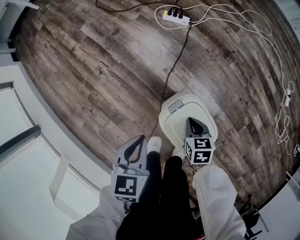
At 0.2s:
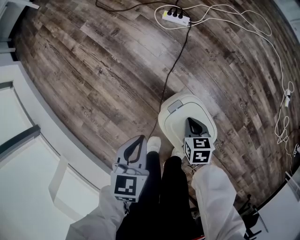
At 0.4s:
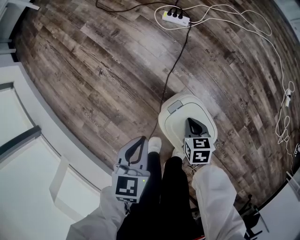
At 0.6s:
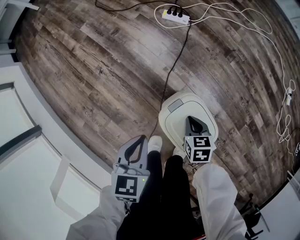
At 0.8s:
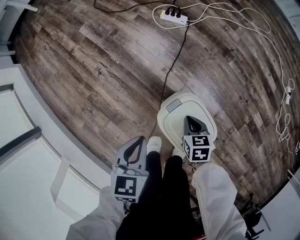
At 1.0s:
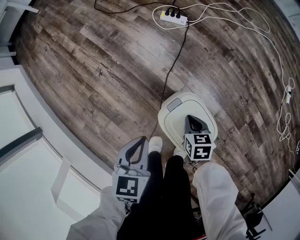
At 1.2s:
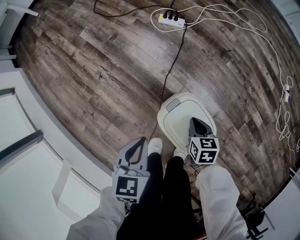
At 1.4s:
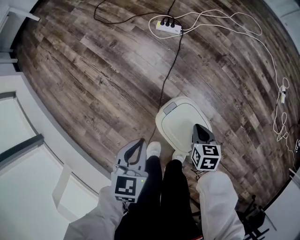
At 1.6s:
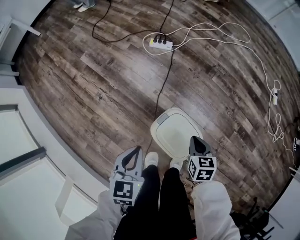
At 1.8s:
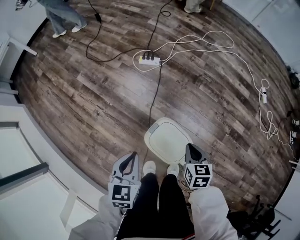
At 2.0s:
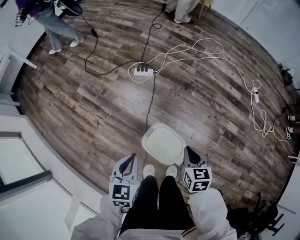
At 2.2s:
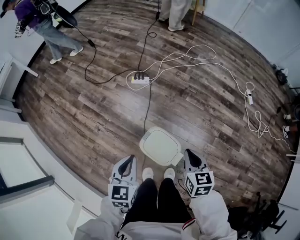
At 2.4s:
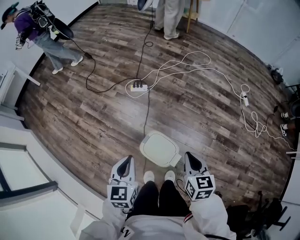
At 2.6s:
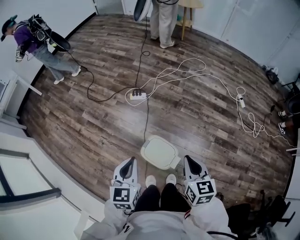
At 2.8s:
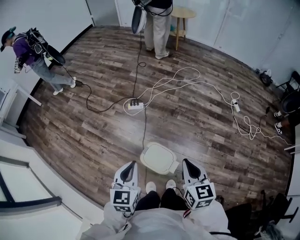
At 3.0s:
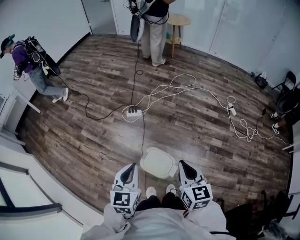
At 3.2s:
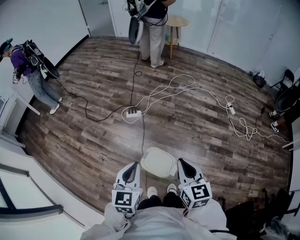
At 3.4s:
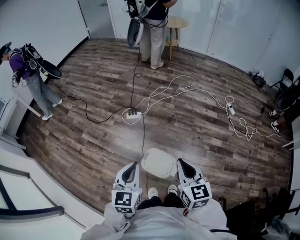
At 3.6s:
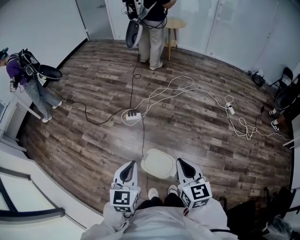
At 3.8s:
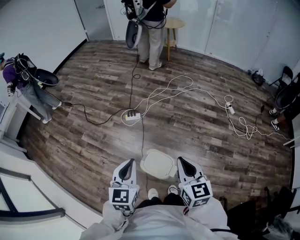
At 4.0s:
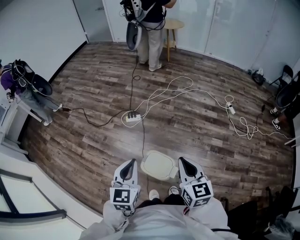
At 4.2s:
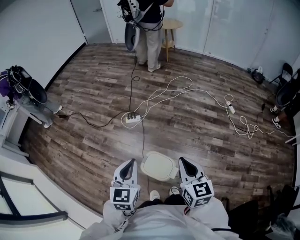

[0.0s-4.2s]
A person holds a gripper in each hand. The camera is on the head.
0.0s to 1.4s: The right gripper heads upward and to the right, covering about 5 cm.
1.4s to 2.8s: The grippers both shift upward by about 50 cm. The left gripper swivels about 20 degrees. Meanwhile the right gripper points its fingers some 30 degrees further upward.
2.8s to 4.2s: The left gripper travels upward by roughly 5 cm.

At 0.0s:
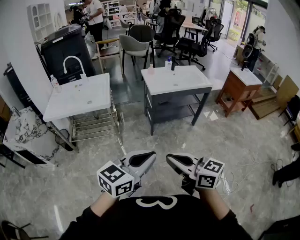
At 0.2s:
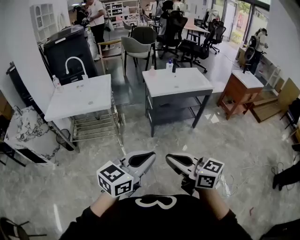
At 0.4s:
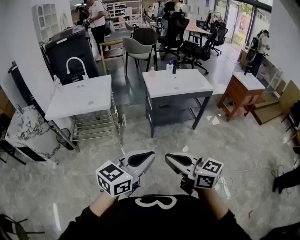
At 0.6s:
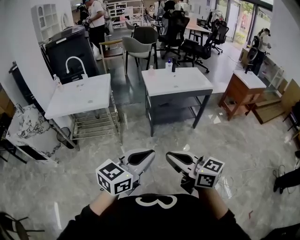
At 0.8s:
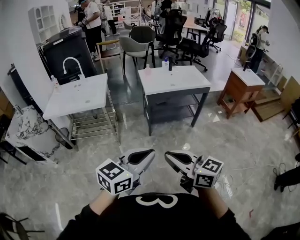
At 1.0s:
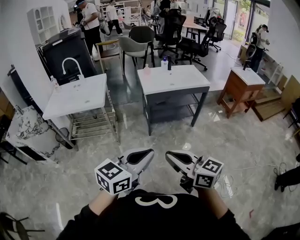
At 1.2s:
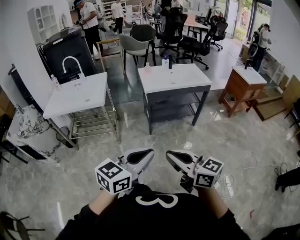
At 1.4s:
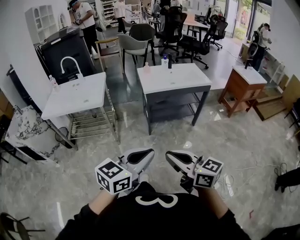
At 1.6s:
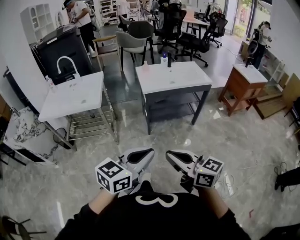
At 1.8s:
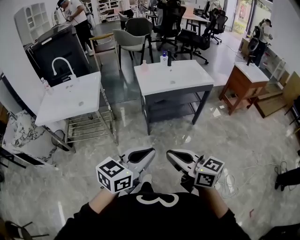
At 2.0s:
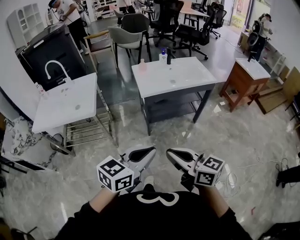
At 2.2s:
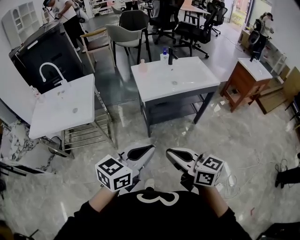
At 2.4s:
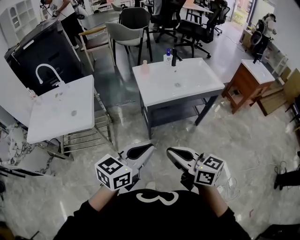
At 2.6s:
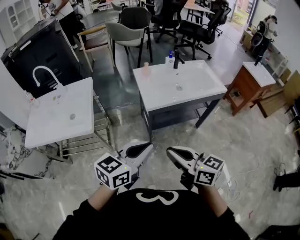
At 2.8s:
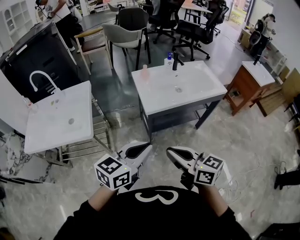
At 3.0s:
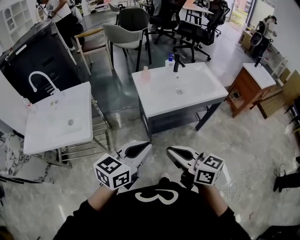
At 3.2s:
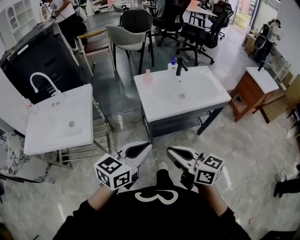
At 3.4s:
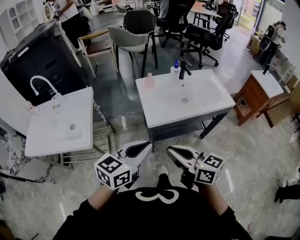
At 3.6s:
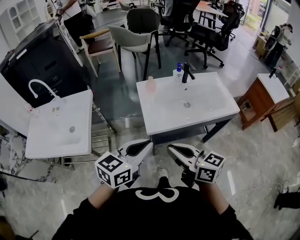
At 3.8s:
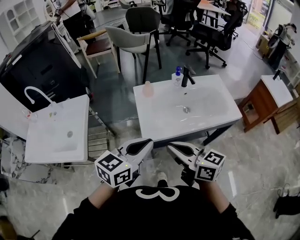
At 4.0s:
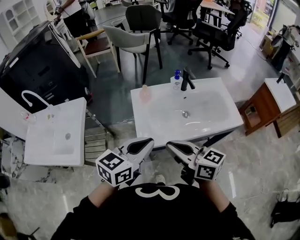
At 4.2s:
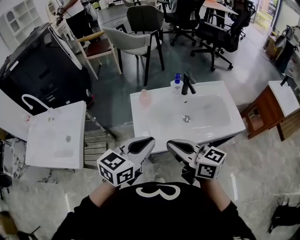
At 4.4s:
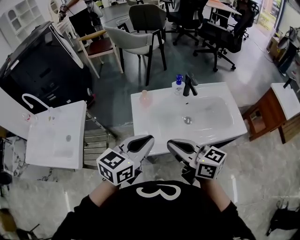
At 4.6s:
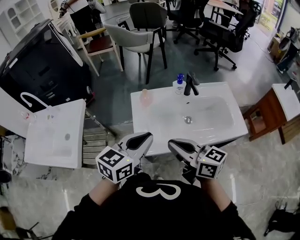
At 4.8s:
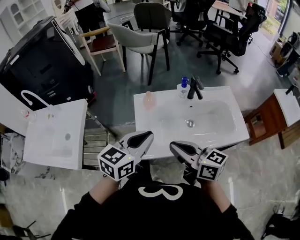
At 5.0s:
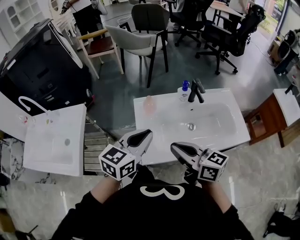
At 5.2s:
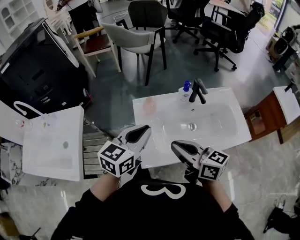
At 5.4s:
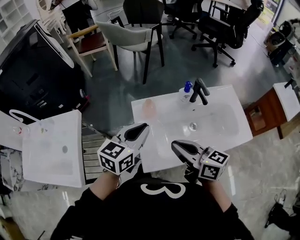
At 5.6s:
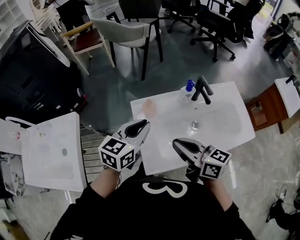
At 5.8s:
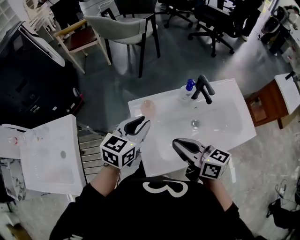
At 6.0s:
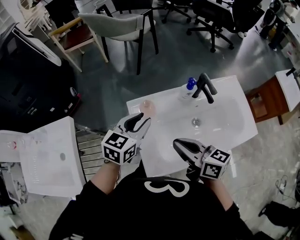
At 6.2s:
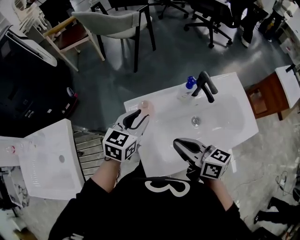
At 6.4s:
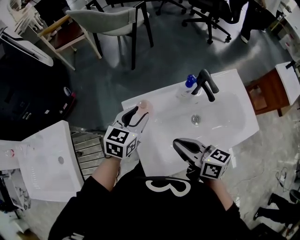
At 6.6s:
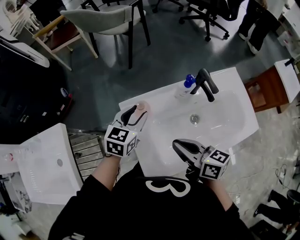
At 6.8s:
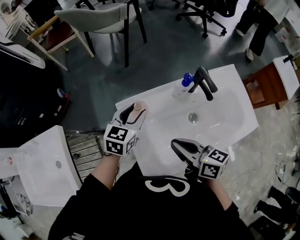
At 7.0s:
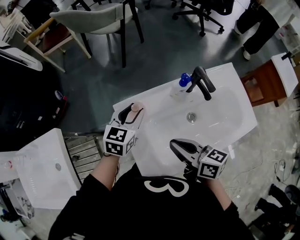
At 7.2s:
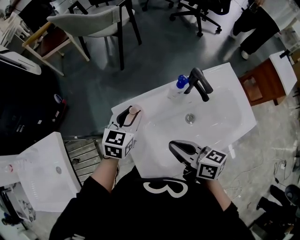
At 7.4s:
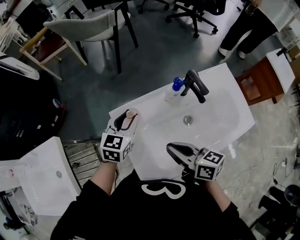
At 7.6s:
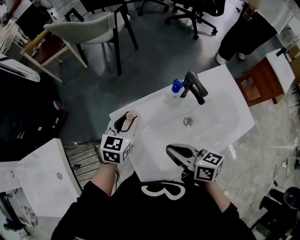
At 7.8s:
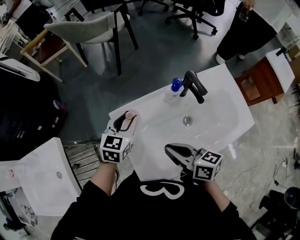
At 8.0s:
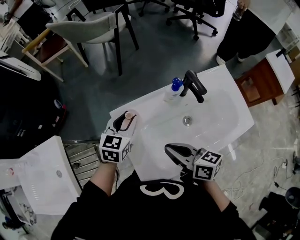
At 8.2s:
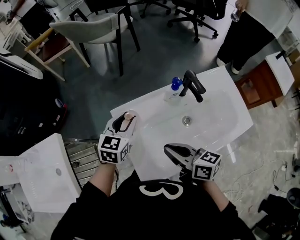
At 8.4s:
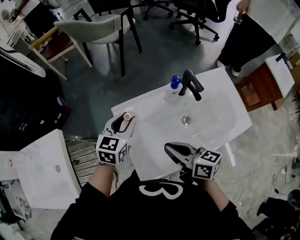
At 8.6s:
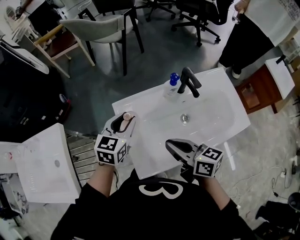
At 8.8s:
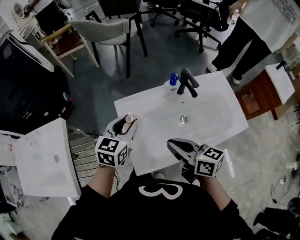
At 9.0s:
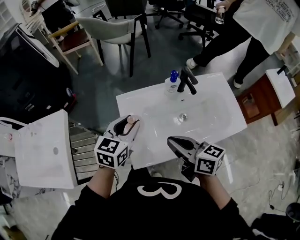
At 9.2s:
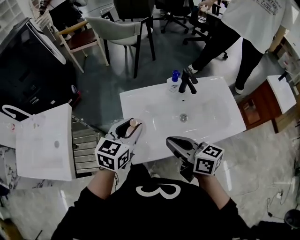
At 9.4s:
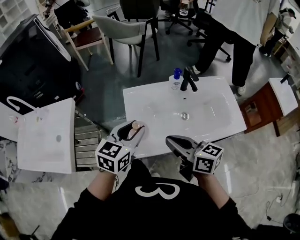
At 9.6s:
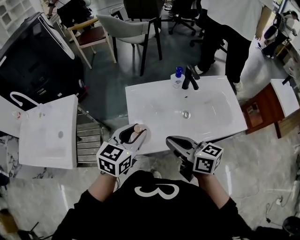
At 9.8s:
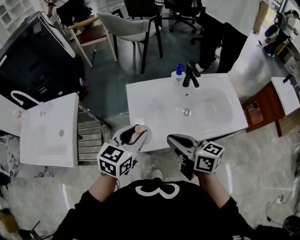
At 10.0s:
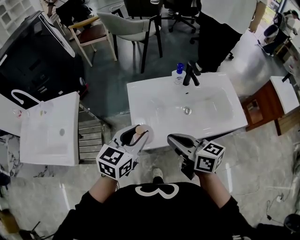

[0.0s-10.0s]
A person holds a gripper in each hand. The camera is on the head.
0.0s to 1.4s: Both grippers travel together to the right, some 10 cm.
1.4s to 2.8s: The grippers both shift forward by some 35 cm.
2.8s to 4.2s: Both grippers travel together forward, some 30 cm.
4.2s to 5.8s: Both grippers move forward, about 20 cm.
5.8s to 7.2s: The right gripper is displaced downward by roughly 5 cm. Meanwhile the left gripper travels forward and downward by about 15 cm.
7.2s to 8.6s: The right gripper ends up some 5 cm from where it was. The left gripper shifts roughly 10 cm backward and upward.
8.6s to 10.0s: The right gripper travels backward by roughly 10 cm. Meanwhile the left gripper moves backward, about 20 cm.

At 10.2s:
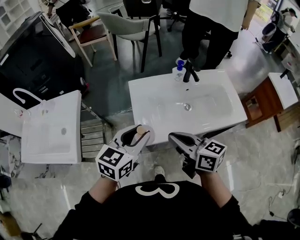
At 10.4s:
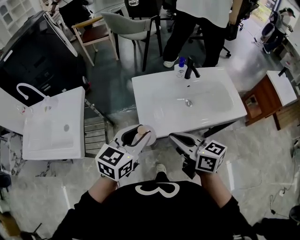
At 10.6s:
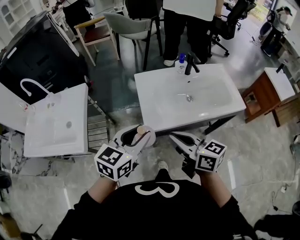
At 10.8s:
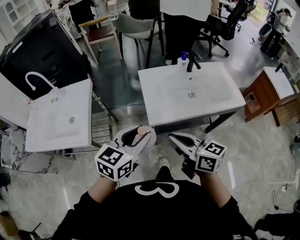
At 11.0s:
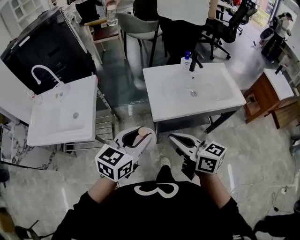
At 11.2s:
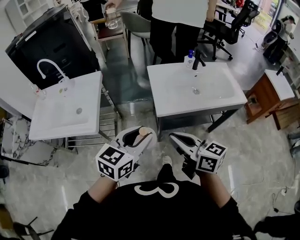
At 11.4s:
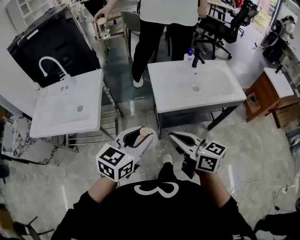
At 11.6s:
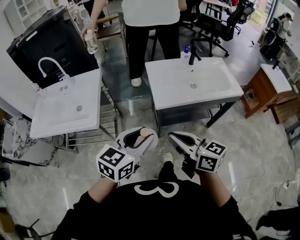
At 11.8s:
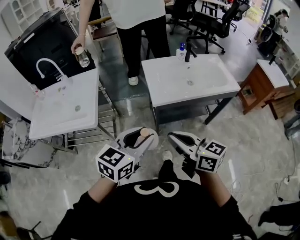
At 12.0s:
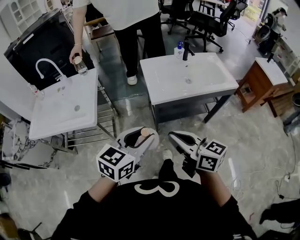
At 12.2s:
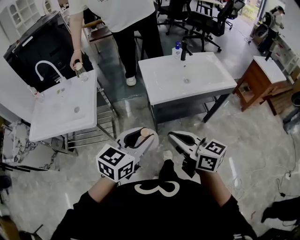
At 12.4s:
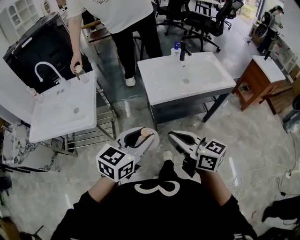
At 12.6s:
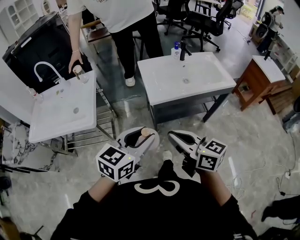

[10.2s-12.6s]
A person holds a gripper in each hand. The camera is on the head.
10.2s to 11.4s: The grippers both shift backward and to the left by roughly 25 cm.
11.4s to 12.6s: Both grippers move backward, approximately 5 cm.

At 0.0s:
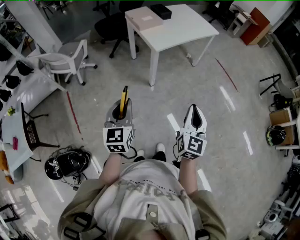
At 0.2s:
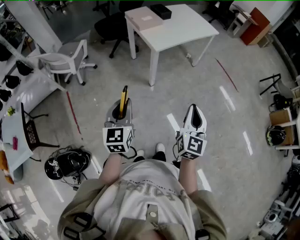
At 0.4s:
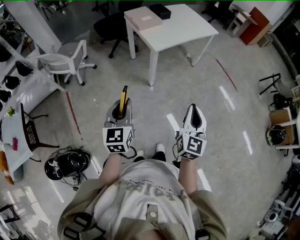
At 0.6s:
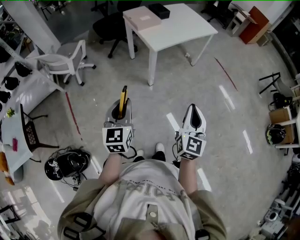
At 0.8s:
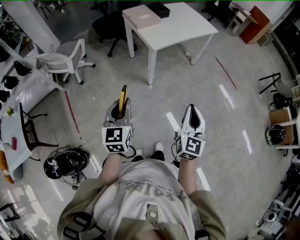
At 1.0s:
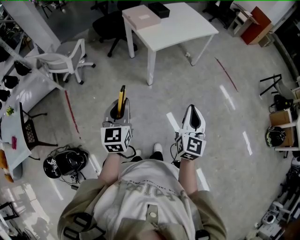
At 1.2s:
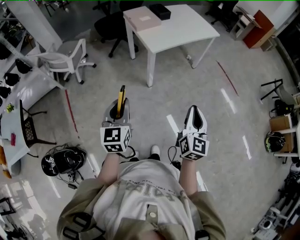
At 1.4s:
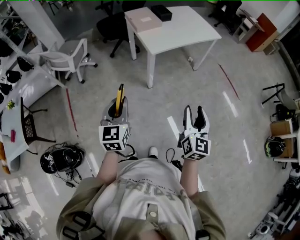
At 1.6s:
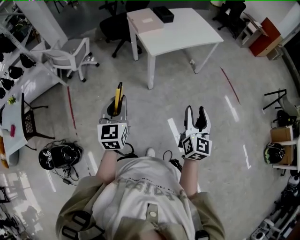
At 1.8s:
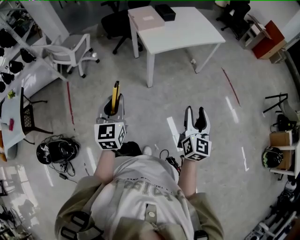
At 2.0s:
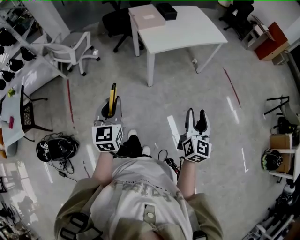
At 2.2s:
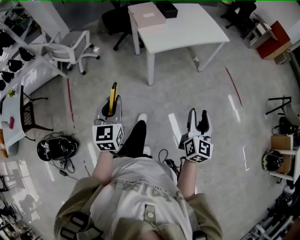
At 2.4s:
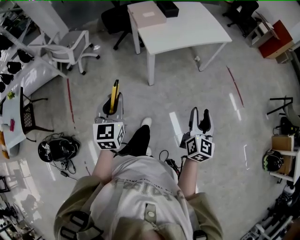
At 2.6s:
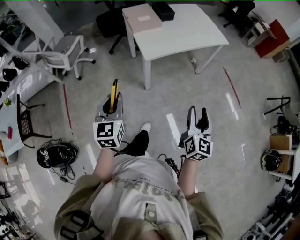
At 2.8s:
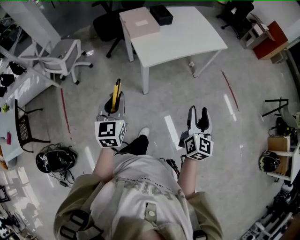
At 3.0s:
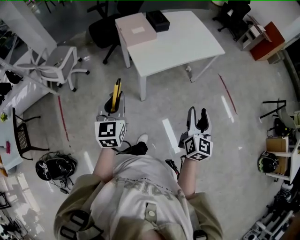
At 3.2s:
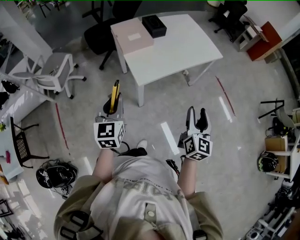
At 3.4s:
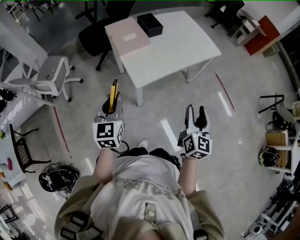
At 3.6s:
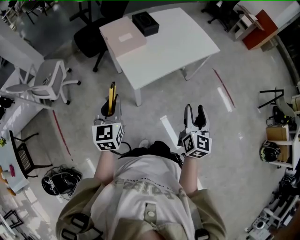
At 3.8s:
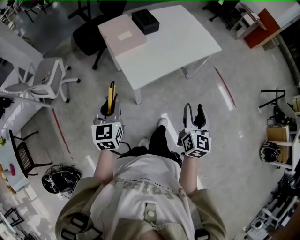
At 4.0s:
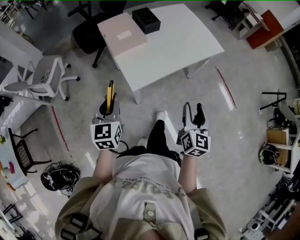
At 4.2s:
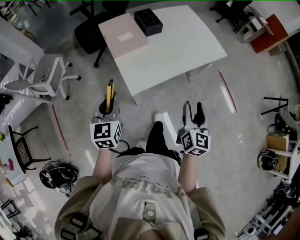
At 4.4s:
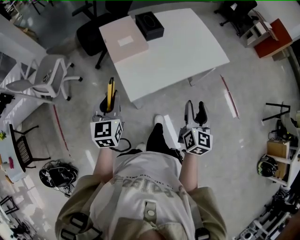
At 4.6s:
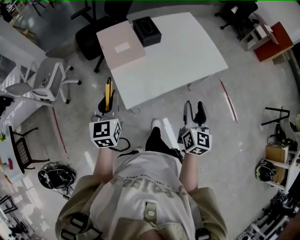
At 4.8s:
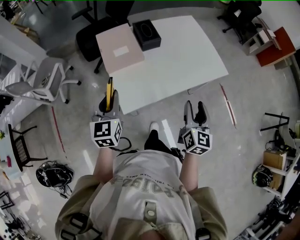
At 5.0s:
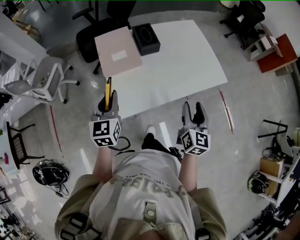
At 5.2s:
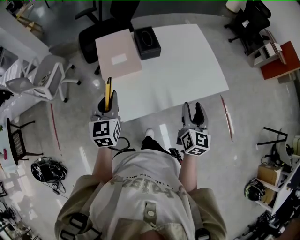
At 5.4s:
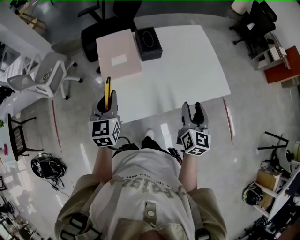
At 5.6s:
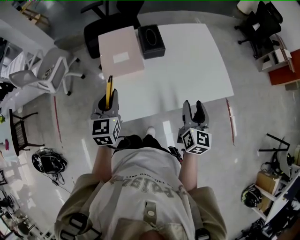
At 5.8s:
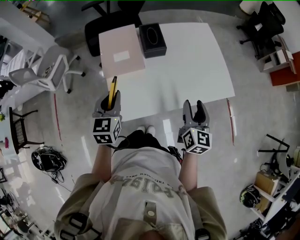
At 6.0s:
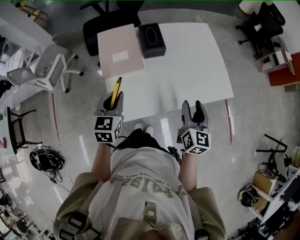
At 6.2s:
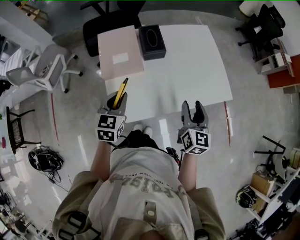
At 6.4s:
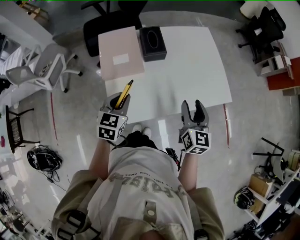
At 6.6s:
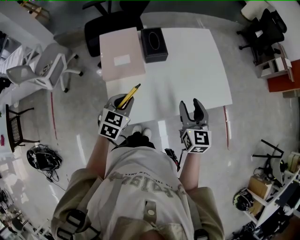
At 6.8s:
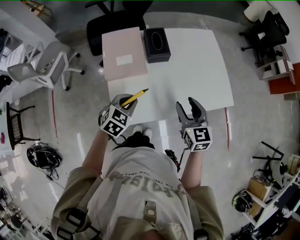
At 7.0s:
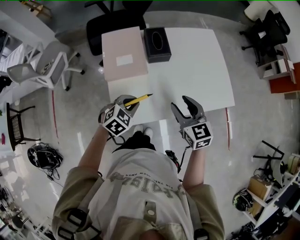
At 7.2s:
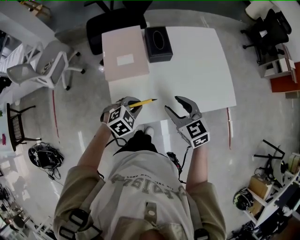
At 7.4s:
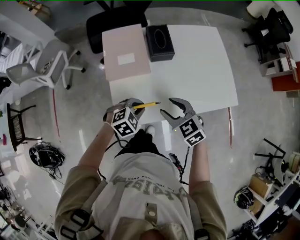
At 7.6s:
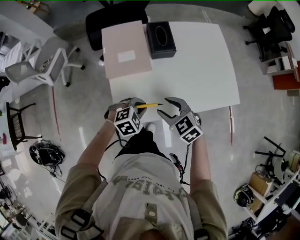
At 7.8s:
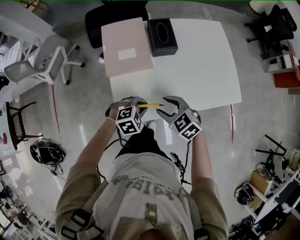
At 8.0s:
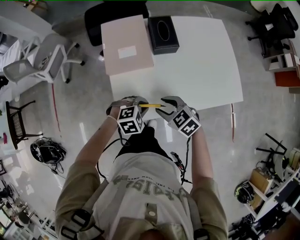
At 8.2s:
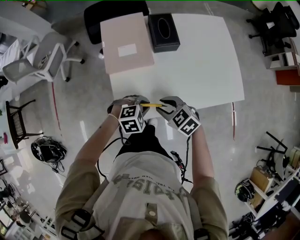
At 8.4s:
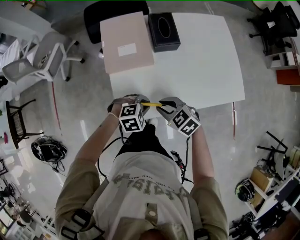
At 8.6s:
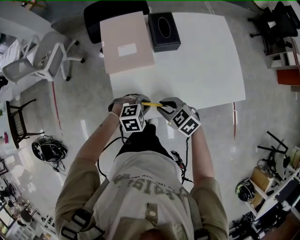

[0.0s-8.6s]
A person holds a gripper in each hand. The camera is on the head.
0.0s to 1.4s: The left gripper is displaced to the right by some 5 cm. Meanwhile the right gripper shifts approximately 10 cm to the right and forward, and opens up.
1.4s to 2.8s: The right gripper heads forward and to the right, covering approximately 20 cm, while the left gripper is displaced forward by roughly 20 cm.
2.8s to 4.4s: The grippers both shift forward by about 30 cm.
4.4s to 5.8s: The right gripper heads forward, covering approximately 20 cm. Meanwhile the left gripper heads forward and to the right, covering about 15 cm.
5.8s to 7.2s: The right gripper shifts about 15 cm to the left, and turns by about 50 degrees; the left gripper travels downward and to the right by roughly 15 cm, and turns by roughly 50 degrees.
7.2s to 8.6s: The right gripper goes roughly 10 cm downward, turns by some 30 degrees, and closes its fingers; the left gripper heads downward, covering roughly 5 cm, and swivels approximately 20 degrees.
